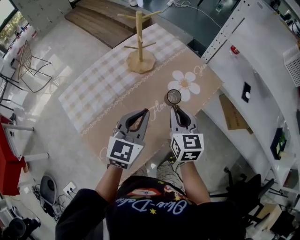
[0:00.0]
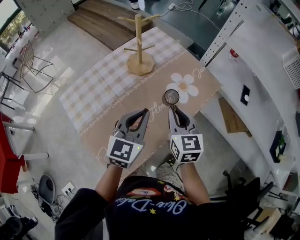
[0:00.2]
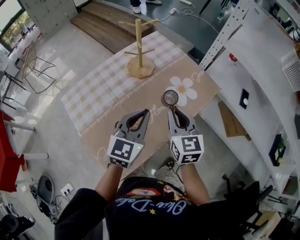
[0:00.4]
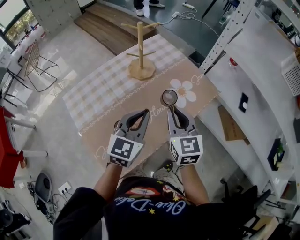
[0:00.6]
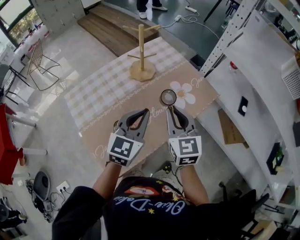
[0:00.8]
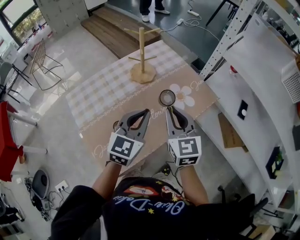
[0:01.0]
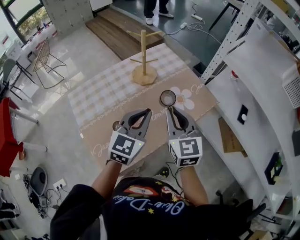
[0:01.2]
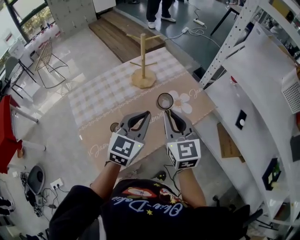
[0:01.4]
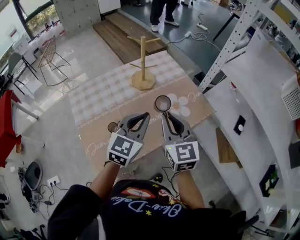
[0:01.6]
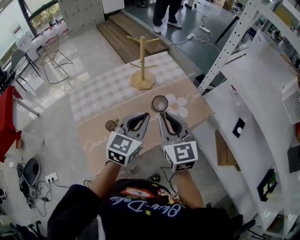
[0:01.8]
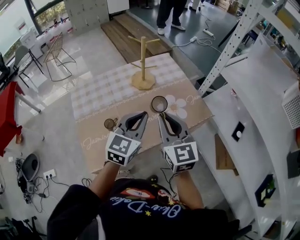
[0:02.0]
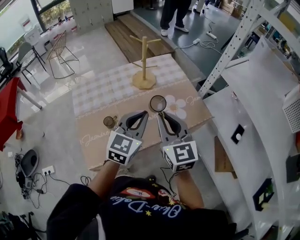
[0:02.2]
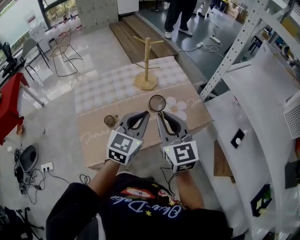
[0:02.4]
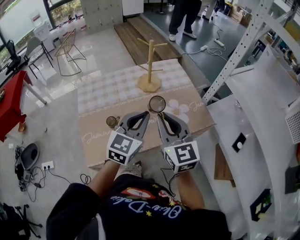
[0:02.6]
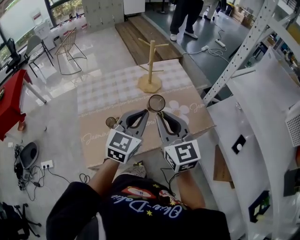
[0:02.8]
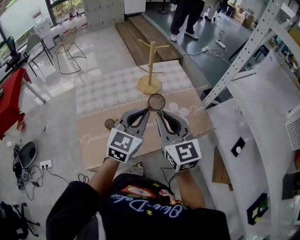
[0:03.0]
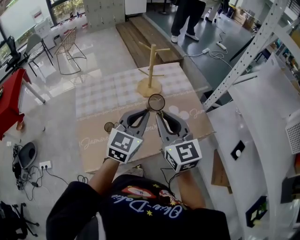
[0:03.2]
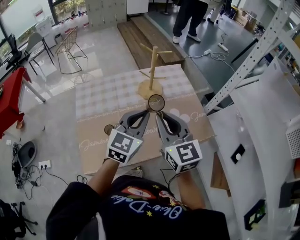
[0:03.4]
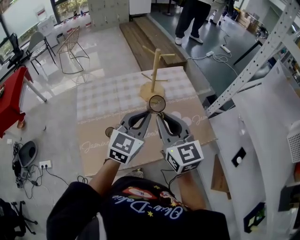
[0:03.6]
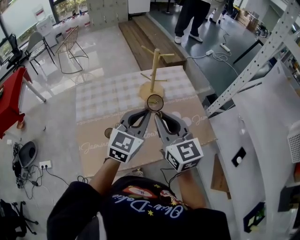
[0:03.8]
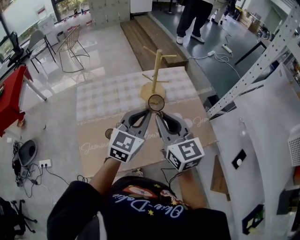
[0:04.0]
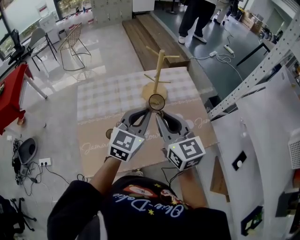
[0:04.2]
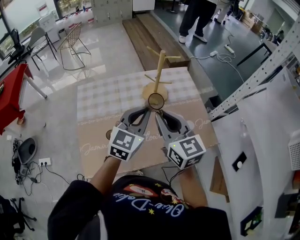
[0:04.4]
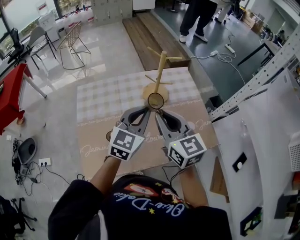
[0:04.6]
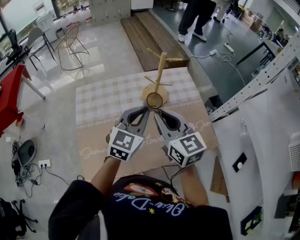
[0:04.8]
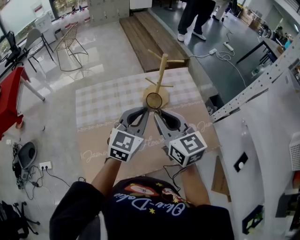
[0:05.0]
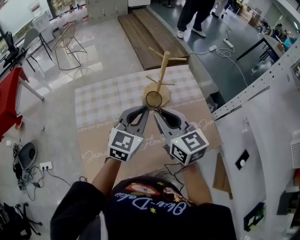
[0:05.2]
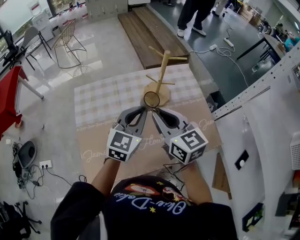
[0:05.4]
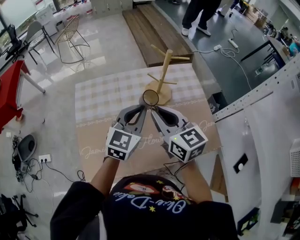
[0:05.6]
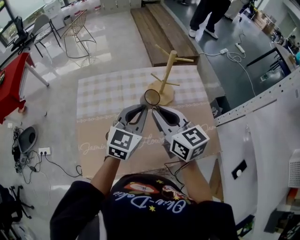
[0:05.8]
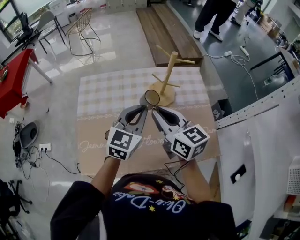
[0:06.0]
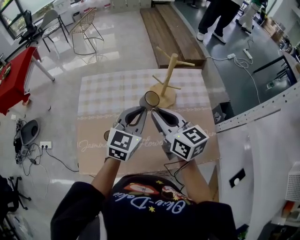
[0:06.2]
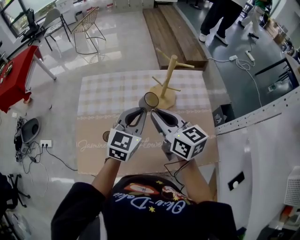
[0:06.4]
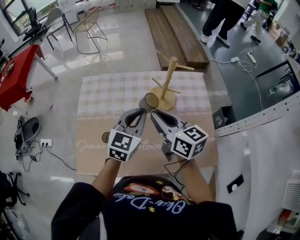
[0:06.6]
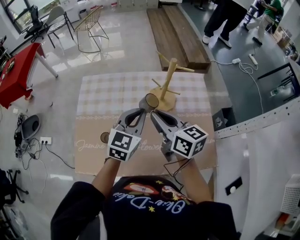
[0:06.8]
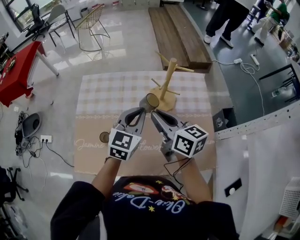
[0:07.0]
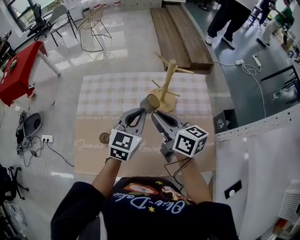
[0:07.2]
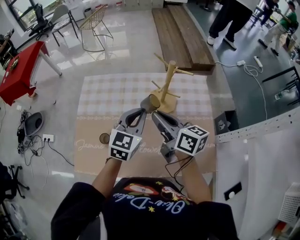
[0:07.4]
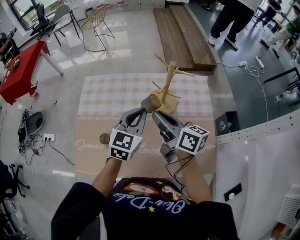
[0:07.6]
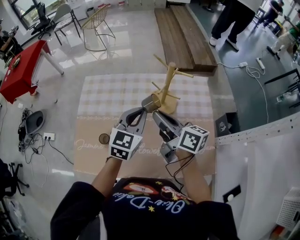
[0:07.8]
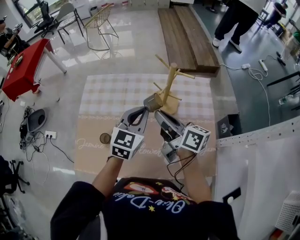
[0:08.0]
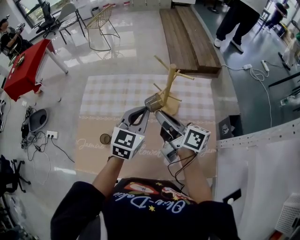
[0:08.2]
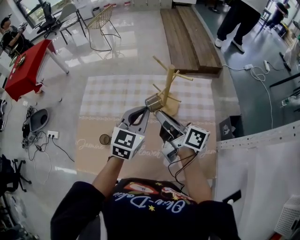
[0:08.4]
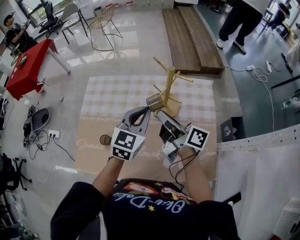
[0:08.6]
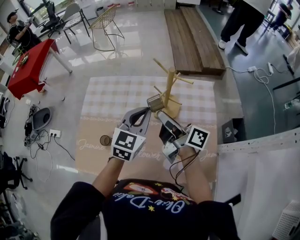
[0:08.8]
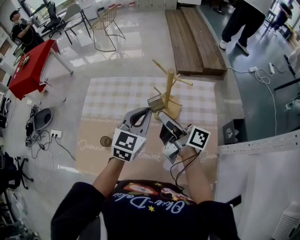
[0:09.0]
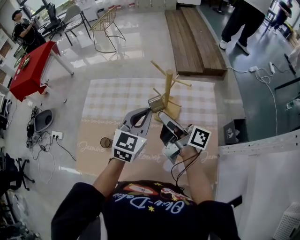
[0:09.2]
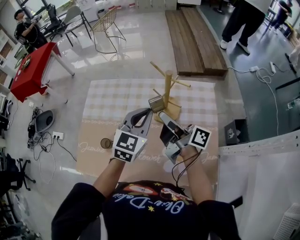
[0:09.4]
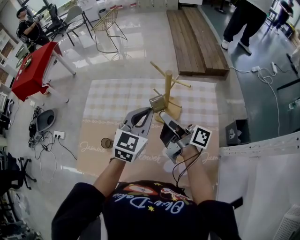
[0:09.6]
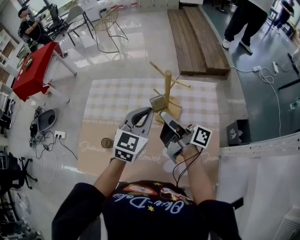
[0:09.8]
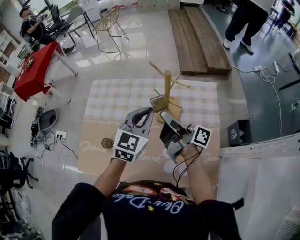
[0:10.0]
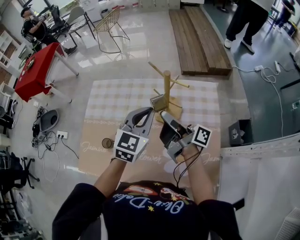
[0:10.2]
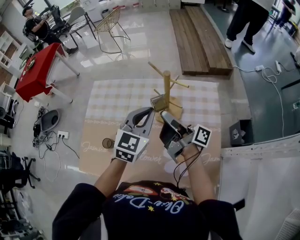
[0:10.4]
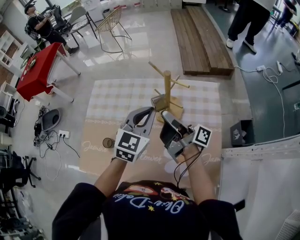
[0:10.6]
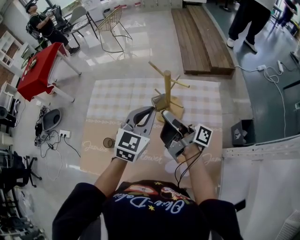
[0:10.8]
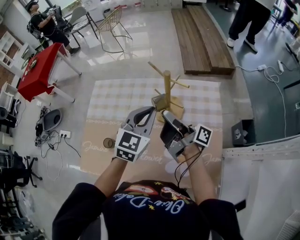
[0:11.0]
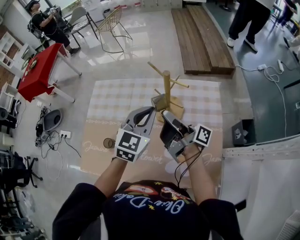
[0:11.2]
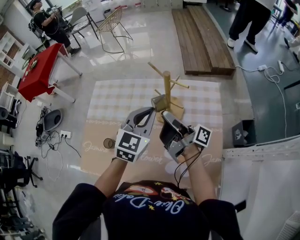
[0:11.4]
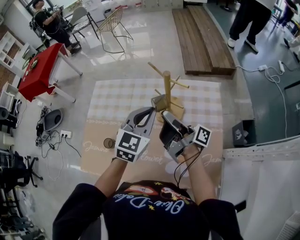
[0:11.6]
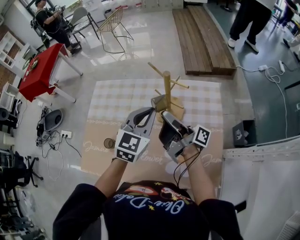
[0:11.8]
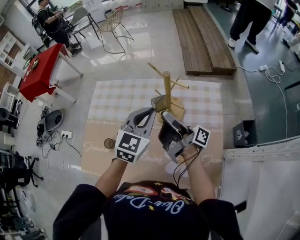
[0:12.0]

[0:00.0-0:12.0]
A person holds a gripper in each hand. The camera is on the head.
0:00.0 to 0:01.6: The left gripper shifts some 5 cm to the right. The right gripper goes roughly 10 cm upward, and turns by approximately 30 degrees.
0:01.6 to 0:03.0: There are only small adjustments of the grippers.
0:03.0 to 0:04.4: The grippers both shift forward by about 10 cm.
0:04.4 to 0:06.0: The two grippers go roughly 5 cm forward. The right gripper turns by some 20 degrees.
0:06.0 to 0:07.6: The left gripper changes place by about 5 cm; the right gripper moves some 5 cm, and turns by approximately 30 degrees.
0:07.6 to 0:09.0: The right gripper swivels some 30 degrees.
0:09.0 to 0:10.4: The grippers stay close to where they were, moving slightly.
0:10.4 to 0:12.0: There are only small adjustments of the grippers.

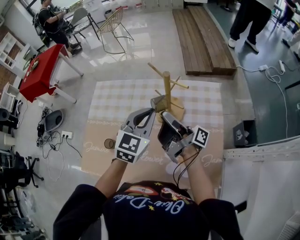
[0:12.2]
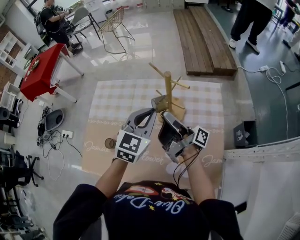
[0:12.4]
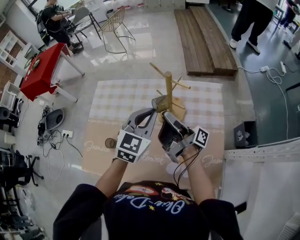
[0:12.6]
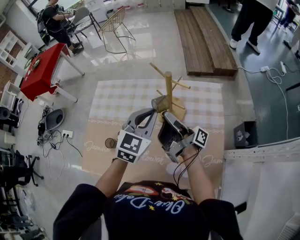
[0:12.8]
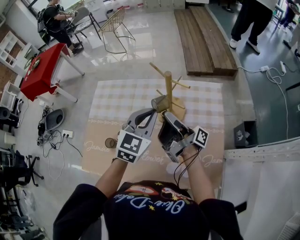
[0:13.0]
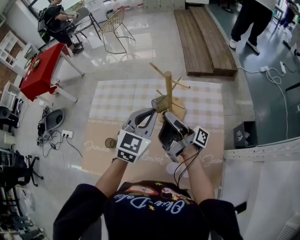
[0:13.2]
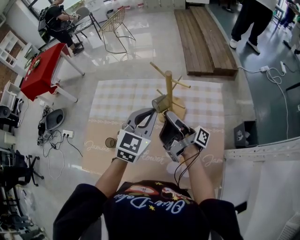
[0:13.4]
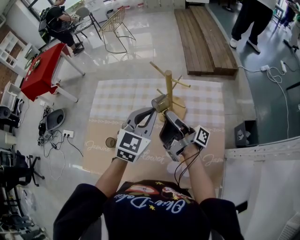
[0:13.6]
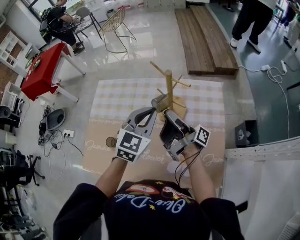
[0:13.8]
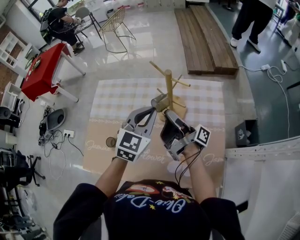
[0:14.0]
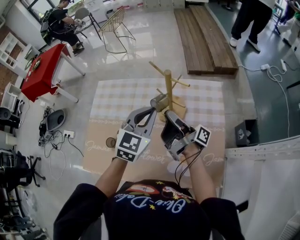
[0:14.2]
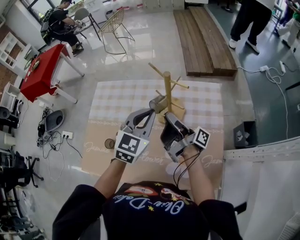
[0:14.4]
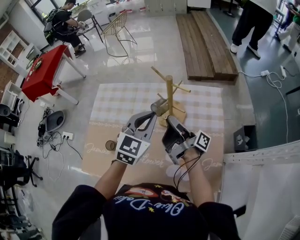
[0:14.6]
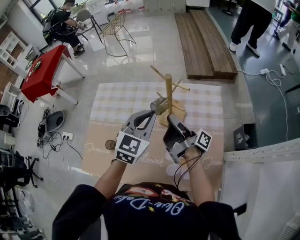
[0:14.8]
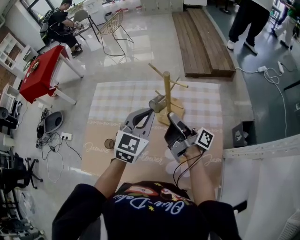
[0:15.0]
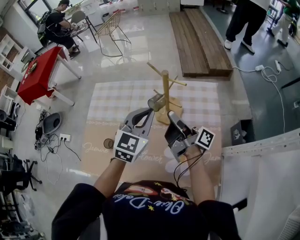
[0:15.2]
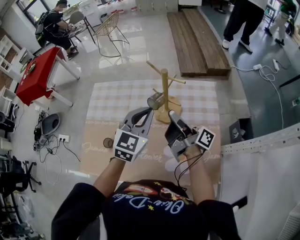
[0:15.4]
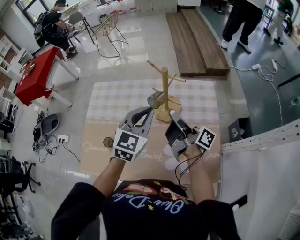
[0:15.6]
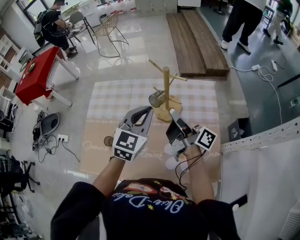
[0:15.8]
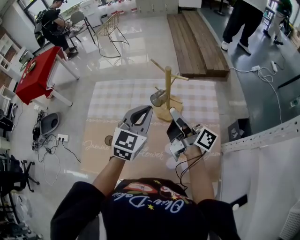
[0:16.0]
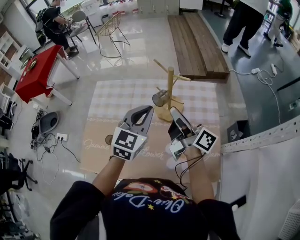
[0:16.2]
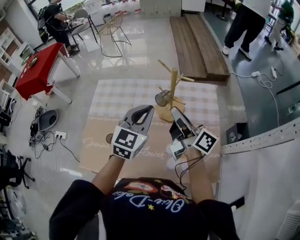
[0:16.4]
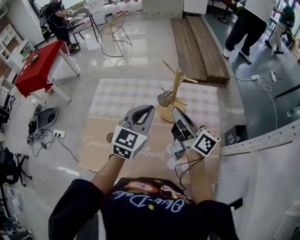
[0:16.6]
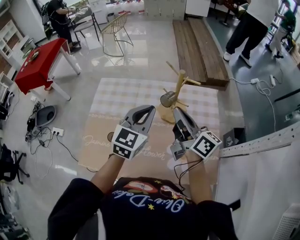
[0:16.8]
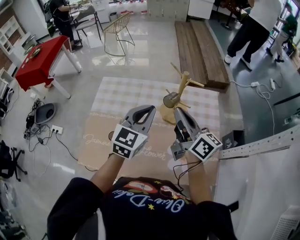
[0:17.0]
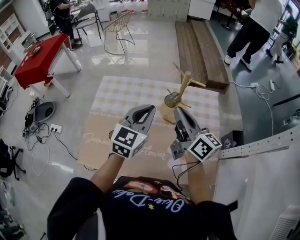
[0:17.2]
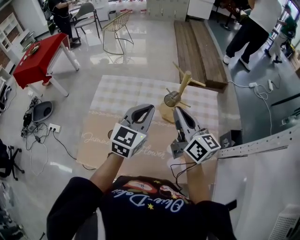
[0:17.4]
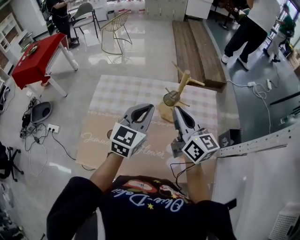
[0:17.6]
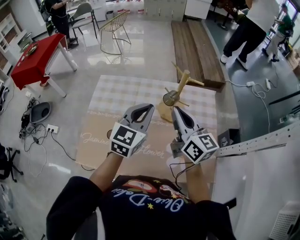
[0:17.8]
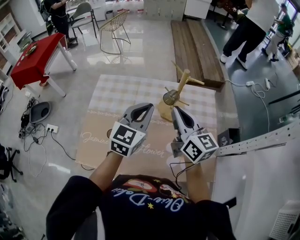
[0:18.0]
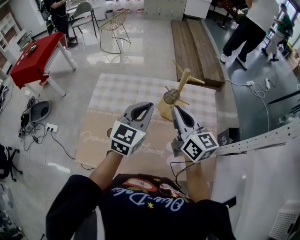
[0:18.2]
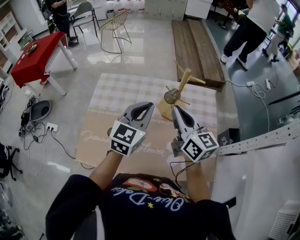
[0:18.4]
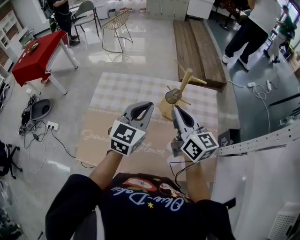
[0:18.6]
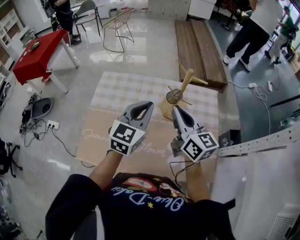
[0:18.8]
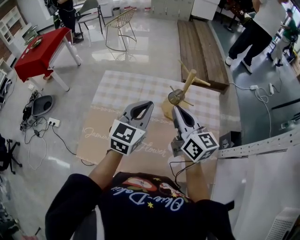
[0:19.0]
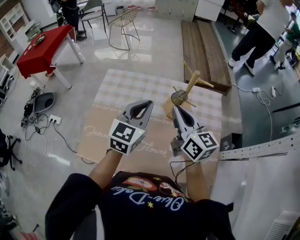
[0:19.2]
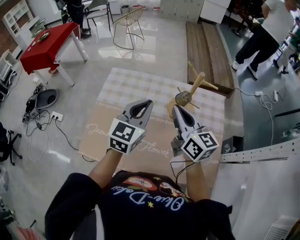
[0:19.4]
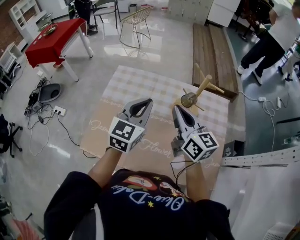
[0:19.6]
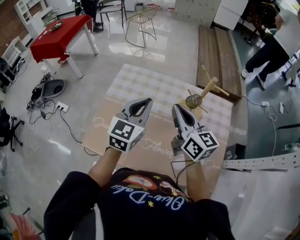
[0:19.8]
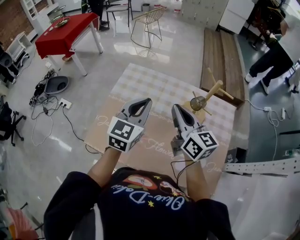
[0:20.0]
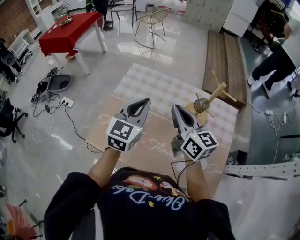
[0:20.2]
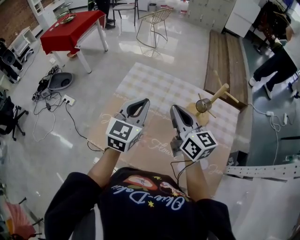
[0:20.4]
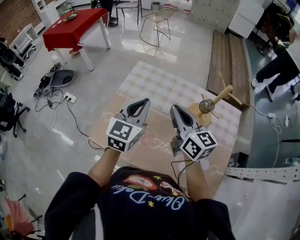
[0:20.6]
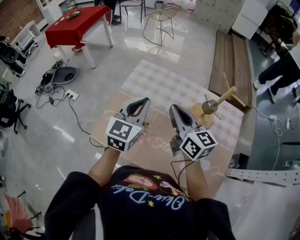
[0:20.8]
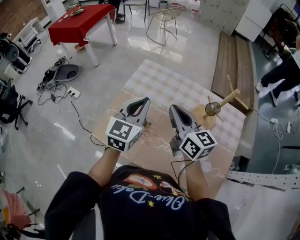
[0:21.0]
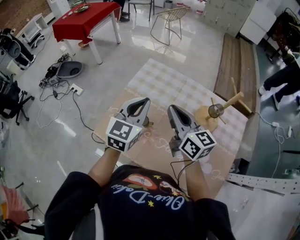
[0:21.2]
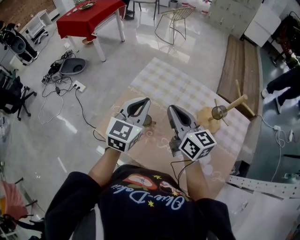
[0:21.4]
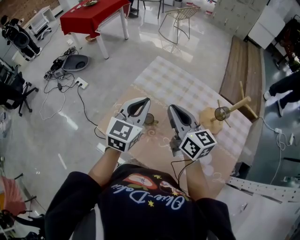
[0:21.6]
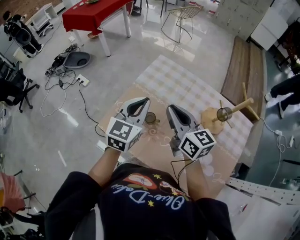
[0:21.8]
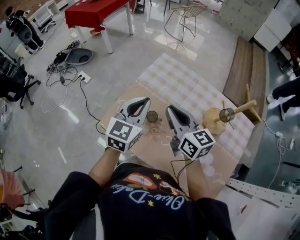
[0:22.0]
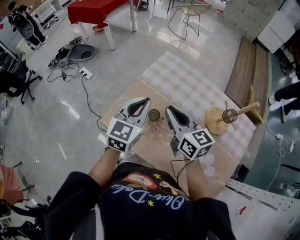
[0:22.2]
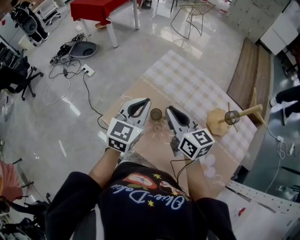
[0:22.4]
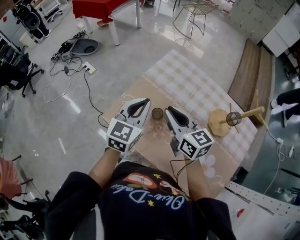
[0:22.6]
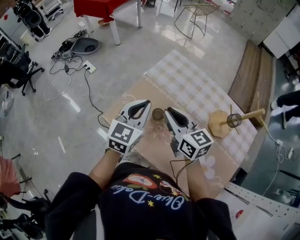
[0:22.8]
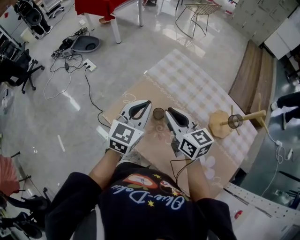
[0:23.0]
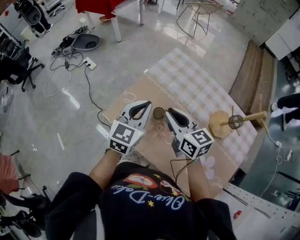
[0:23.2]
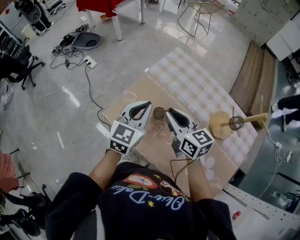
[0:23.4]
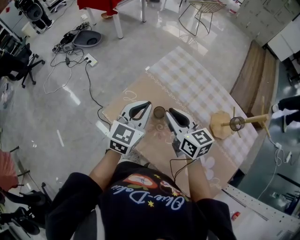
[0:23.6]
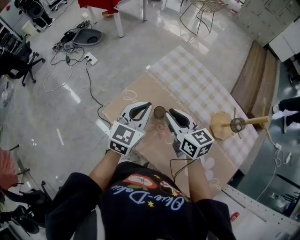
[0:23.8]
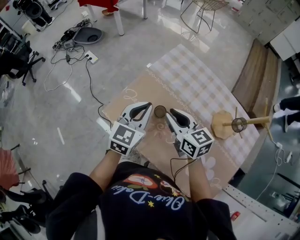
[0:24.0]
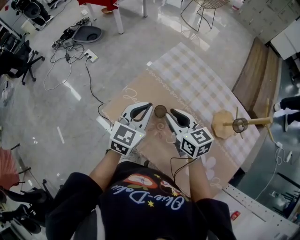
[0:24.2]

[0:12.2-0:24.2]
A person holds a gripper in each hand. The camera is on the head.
0:12.2 to 0:15.2: The grippers stay close to where they were, moving slightly.
0:15.2 to 0:16.6: The right gripper travels upward by approximately 5 cm, and swivels roughly 40 degrees.
0:16.6 to 0:18.2: The right gripper turns by about 30 degrees.
0:18.2 to 0:19.8: Both grippers travel together to the left, some 10 cm.
0:19.8 to 0:21.2: The two grippers go some 10 cm to the left.
0:21.2 to 0:22.6: The right gripper goes approximately 10 cm to the left and downward, while the left gripper moves to the left, roughly 5 cm.
0:22.6 to 0:24.2: The two grippers go approximately 5 cm downward.
